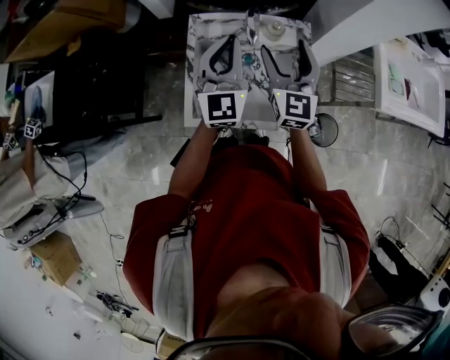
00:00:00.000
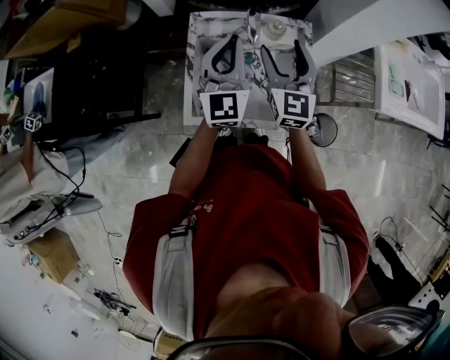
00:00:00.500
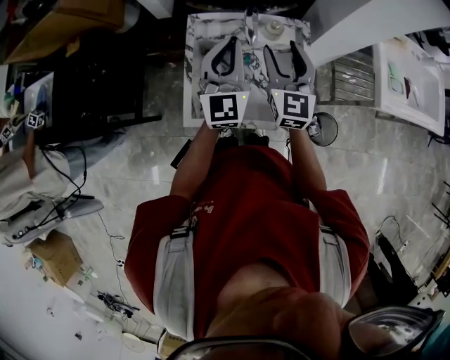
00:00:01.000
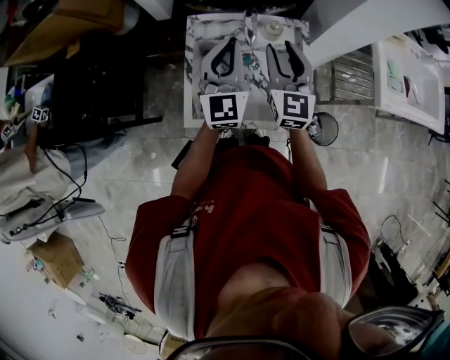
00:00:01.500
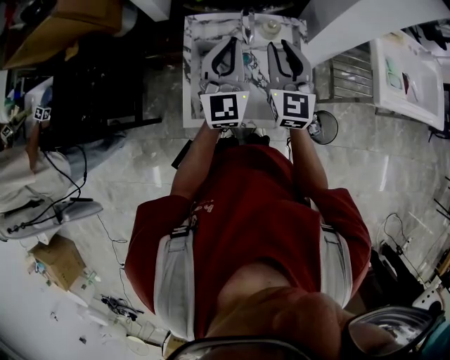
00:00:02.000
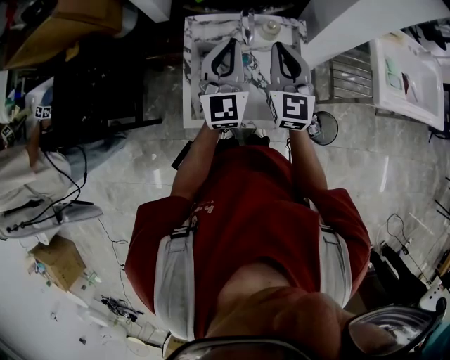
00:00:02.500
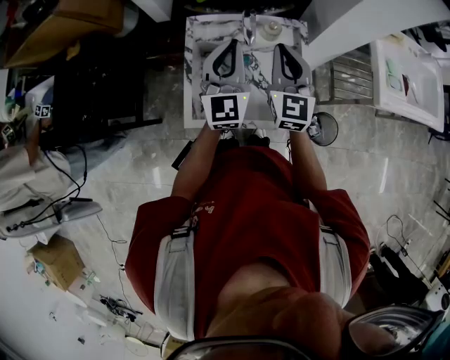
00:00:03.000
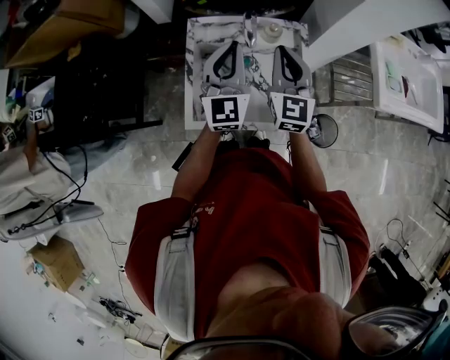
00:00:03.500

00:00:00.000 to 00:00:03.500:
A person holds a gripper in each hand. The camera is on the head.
00:00:00.000 to 00:00:02.000: The right gripper closes its fingers.
00:00:02.000 to 00:00:03.500: Both grippers stay about where they are.

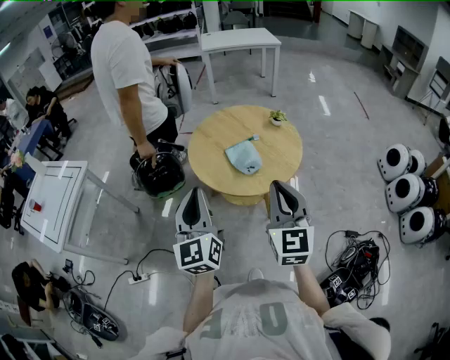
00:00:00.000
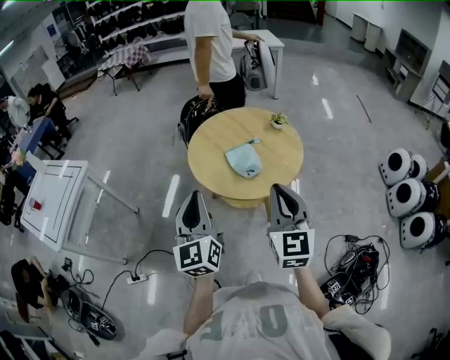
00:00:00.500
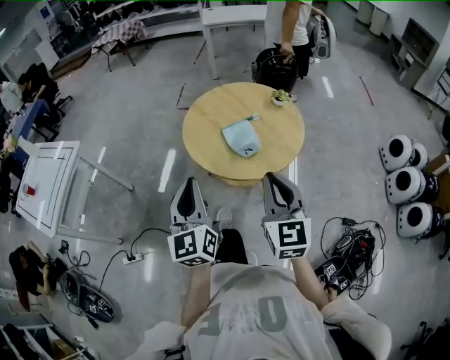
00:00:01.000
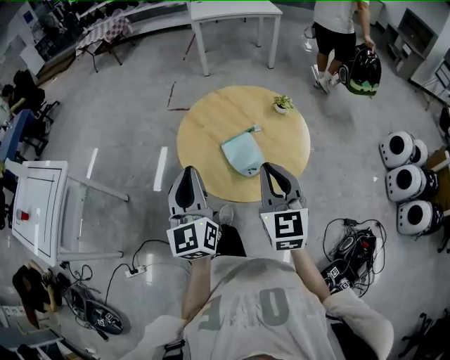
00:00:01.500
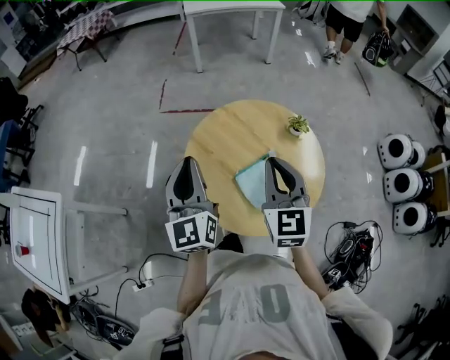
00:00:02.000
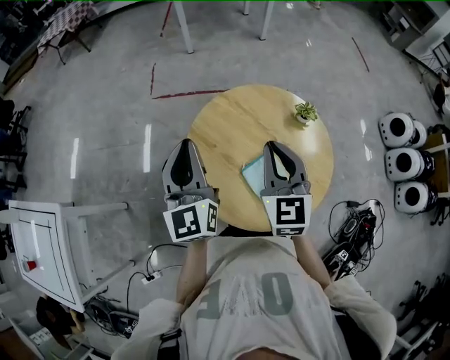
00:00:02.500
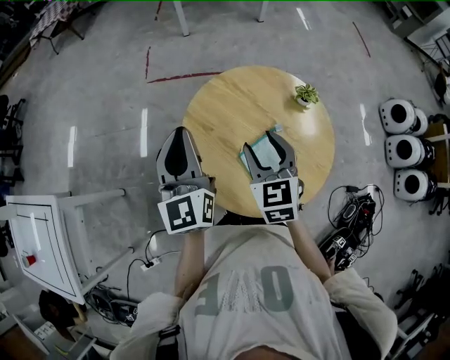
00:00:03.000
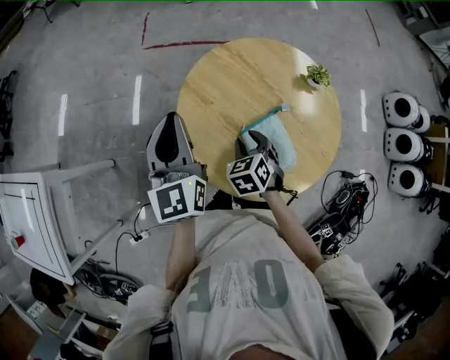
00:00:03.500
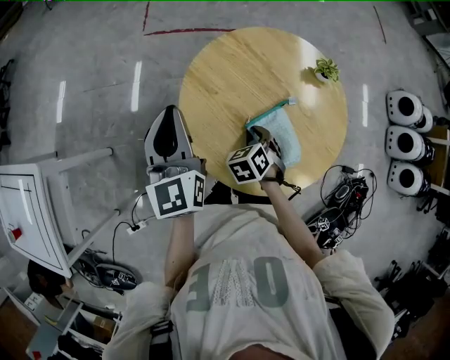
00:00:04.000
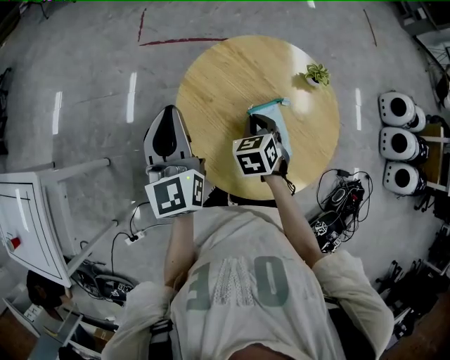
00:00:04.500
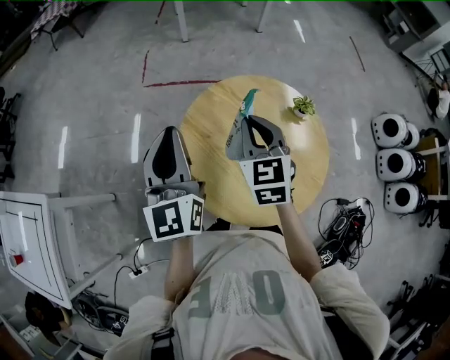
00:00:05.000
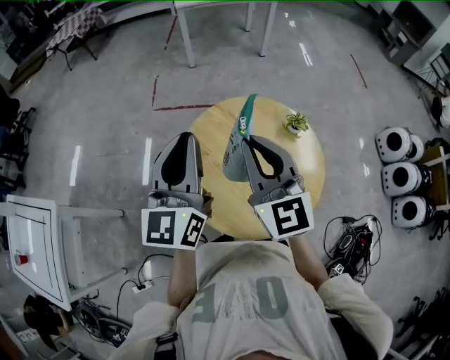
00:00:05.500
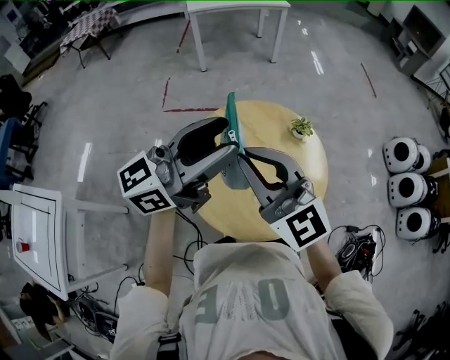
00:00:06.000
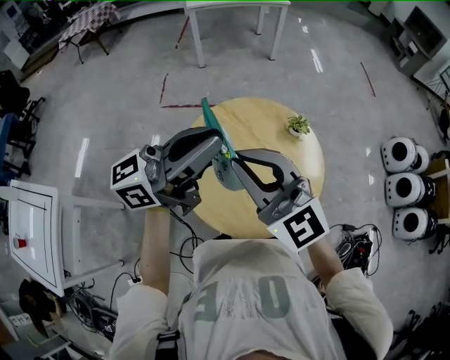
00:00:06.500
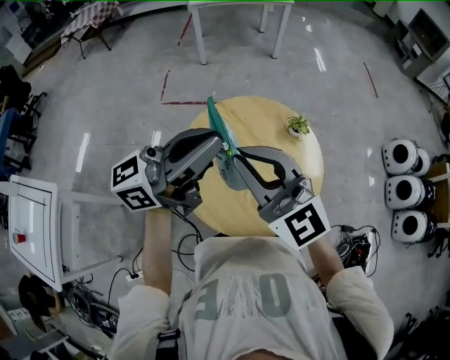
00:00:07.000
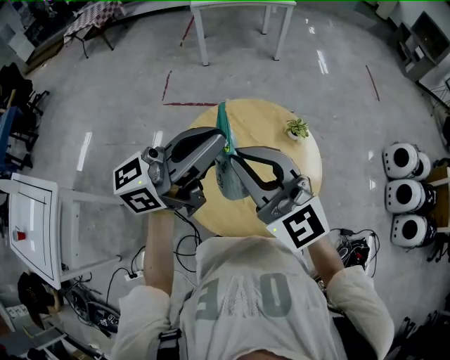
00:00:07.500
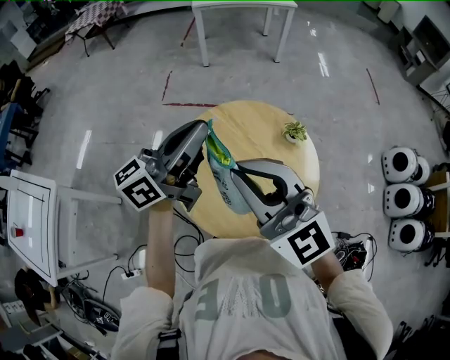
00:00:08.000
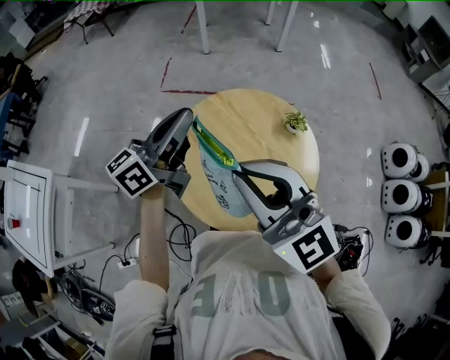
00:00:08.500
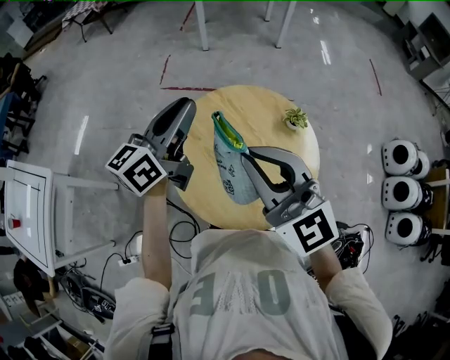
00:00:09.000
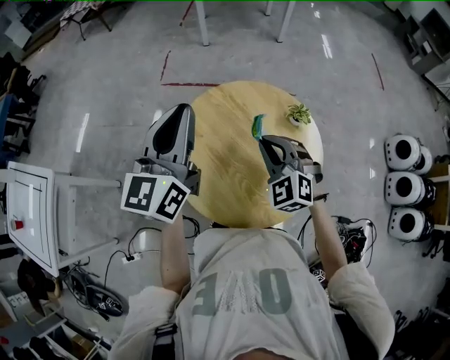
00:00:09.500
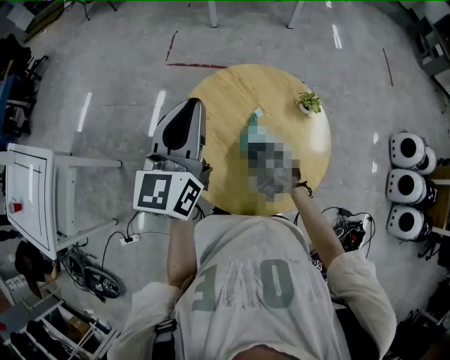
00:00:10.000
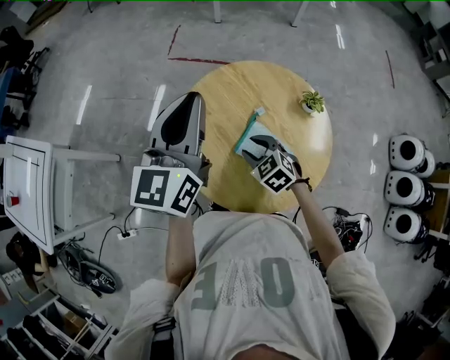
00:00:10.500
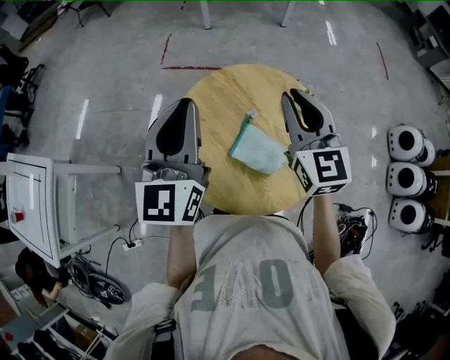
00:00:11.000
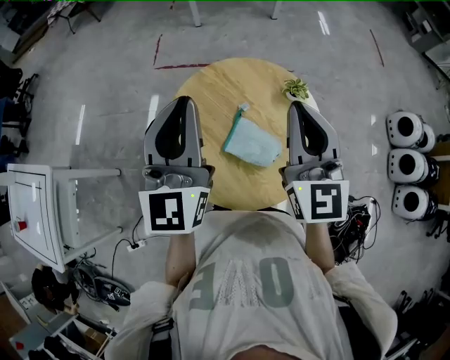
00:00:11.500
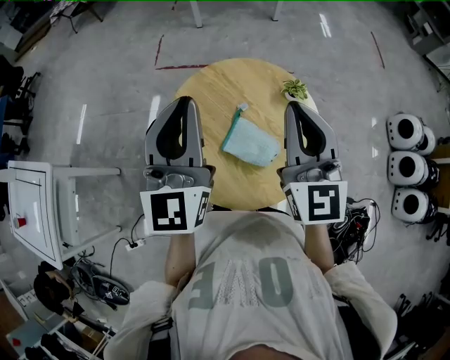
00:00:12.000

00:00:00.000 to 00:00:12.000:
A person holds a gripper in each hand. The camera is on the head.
00:00:00.000 to 00:00:02.000: The two grippers go about 35 cm forward.
00:00:02.000 to 00:00:04.000: The right gripper goes some 30 cm downward, tilts its fingers approximately 50 degrees downward, and opens, then closes once more. Meanwhile the left gripper shifts about 15 cm downward, forward and to the left.
00:00:04.000 to 00:00:06.000: The left gripper goes some 25 cm upward and to the right, turns by some 70 degrees, and opens, while the right gripper shifts about 40 cm upward, and angles its fingers upward, by about 70 degrees.
00:00:06.000 to 00:00:08.000: The left gripper moves roughly 5 cm, swivels approximately 20 degrees, and closes its fingers.
00:00:08.000 to 00:00:10.000: The left gripper shifts by some 5 cm, and rotates some 50 degrees. Meanwhile the right gripper moves downward, about 35 cm, and angles its fingers downward, by approximately 60 degrees.
00:00:10.000 to 00:00:12.000: The left gripper moves about 5 cm. The right gripper moves upward, about 30 cm, angles its fingers upward, by approximately 50 degrees, and opens, then closes again.

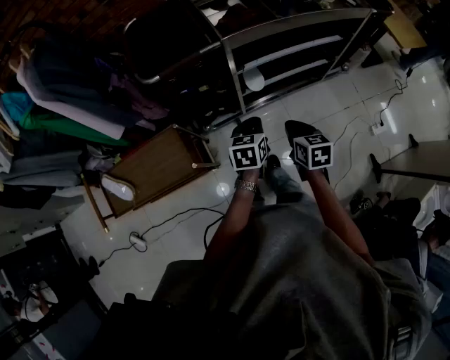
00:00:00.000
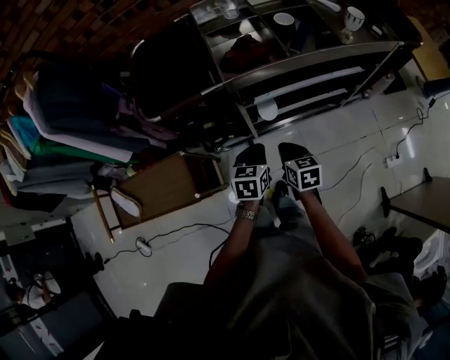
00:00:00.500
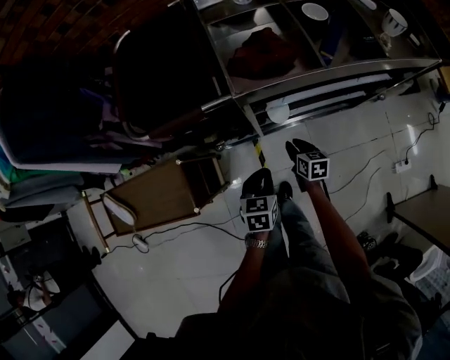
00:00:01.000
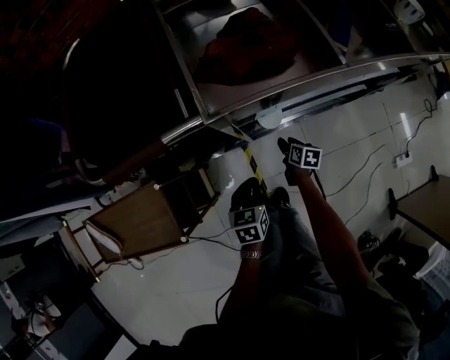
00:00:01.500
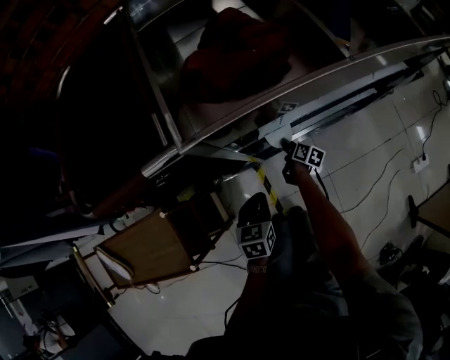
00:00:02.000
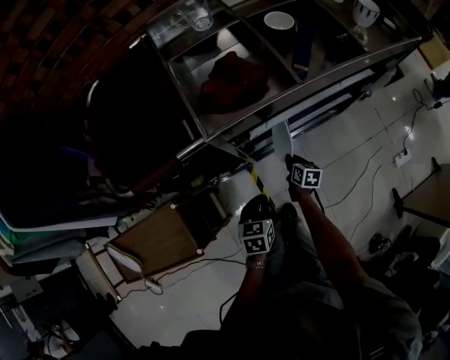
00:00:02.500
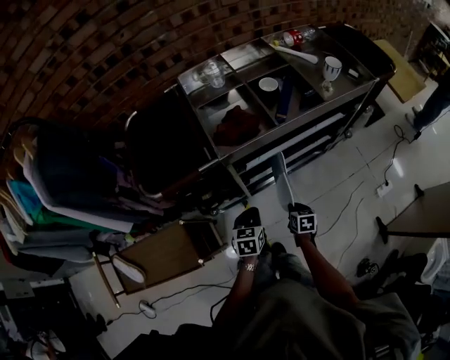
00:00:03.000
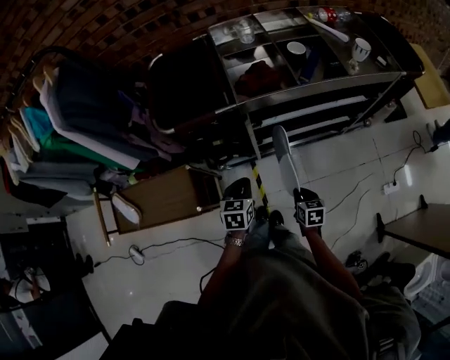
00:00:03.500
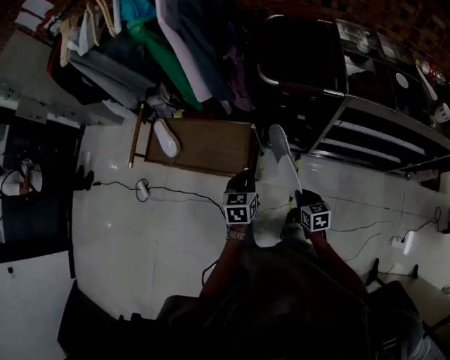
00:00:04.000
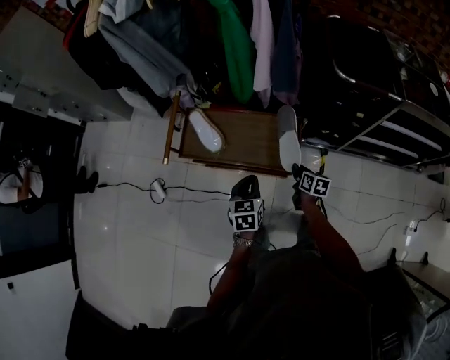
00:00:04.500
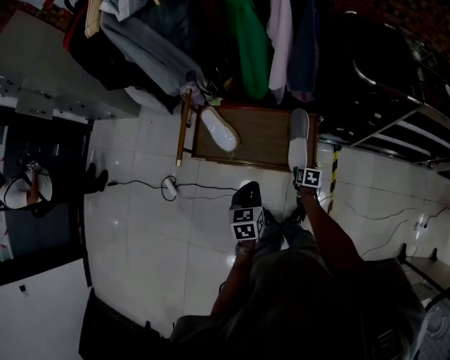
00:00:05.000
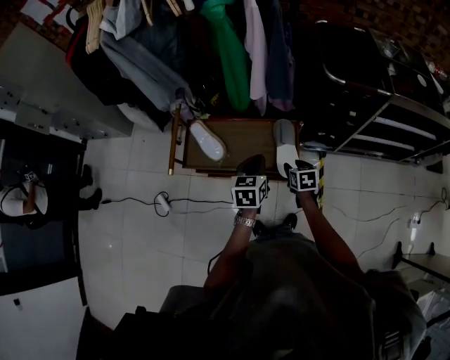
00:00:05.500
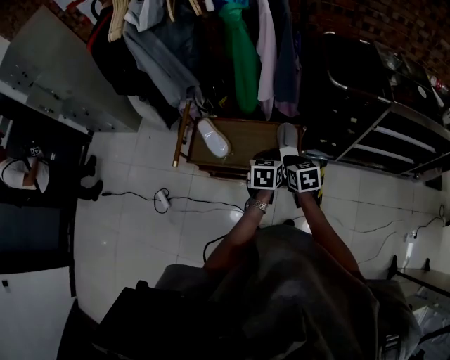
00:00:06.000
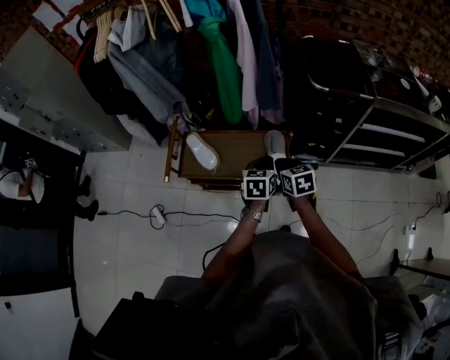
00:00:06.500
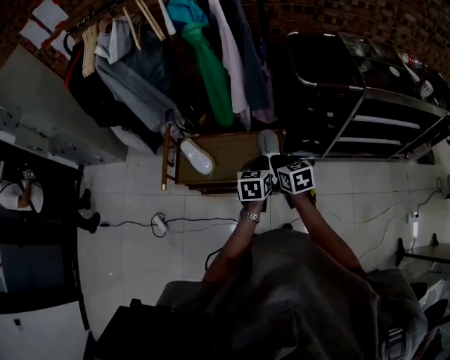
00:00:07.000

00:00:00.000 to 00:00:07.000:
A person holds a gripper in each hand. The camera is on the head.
00:00:00.000 to 00:00:02.000: The right gripper goes about 60 cm downward and forward, twists approximately 40 degrees clockwise, seen from behind, and opens up. The left gripper is displaced downward and forward by approximately 35 cm.
00:00:02.000 to 00:00:03.500: The left gripper goes about 25 cm upward, while the right gripper shifts approximately 50 cm upward and backward, and rolls counterclockwise, seen from behind, by about 40 degrees.
00:00:03.500 to 00:00:05.000: The pair of grippers is taken some 60 cm. The left gripper turns by about 30 degrees; the right gripper rotates roughly 20 degrees, and opens up.
00:00:05.000 to 00:00:07.000: The right gripper is displaced upward by roughly 30 cm, turns by roughly 30 degrees, and closes its fingers; the left gripper travels to the right and upward by about 20 cm.

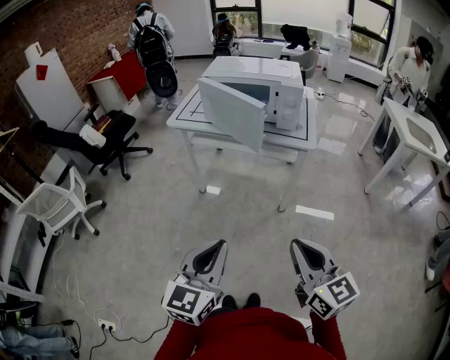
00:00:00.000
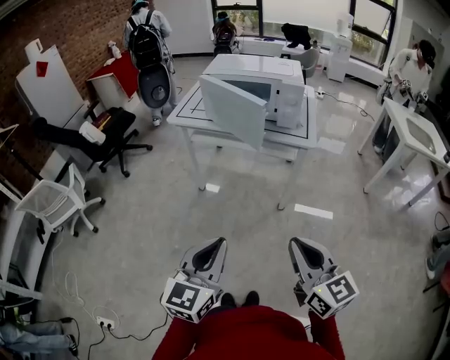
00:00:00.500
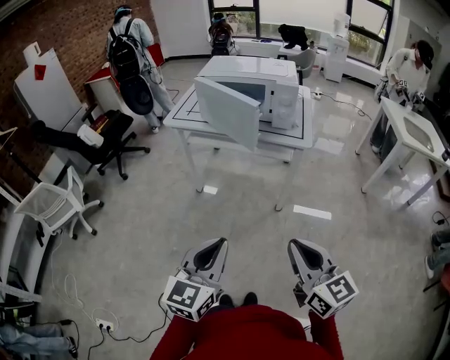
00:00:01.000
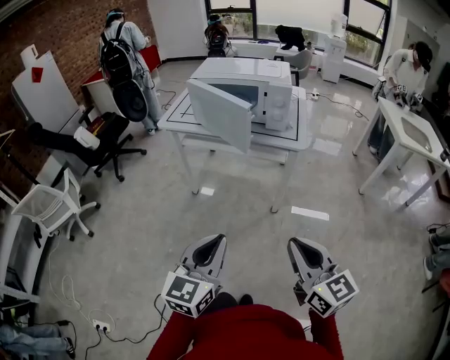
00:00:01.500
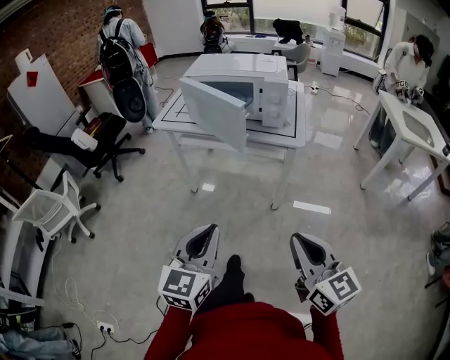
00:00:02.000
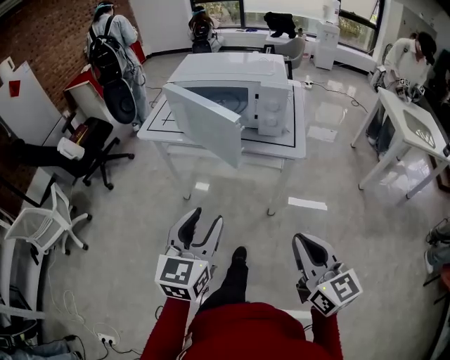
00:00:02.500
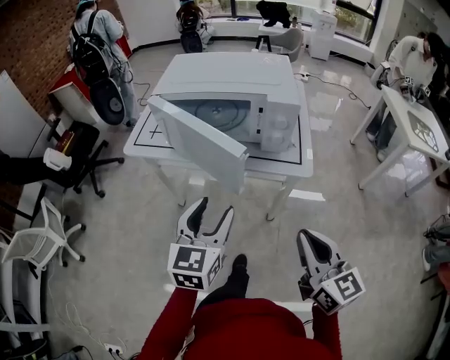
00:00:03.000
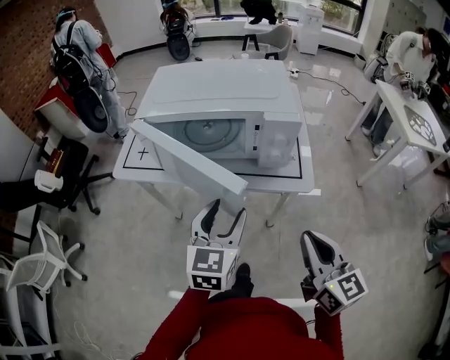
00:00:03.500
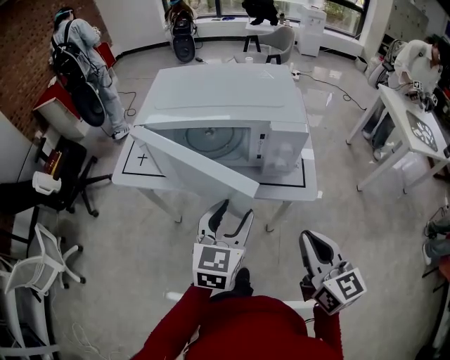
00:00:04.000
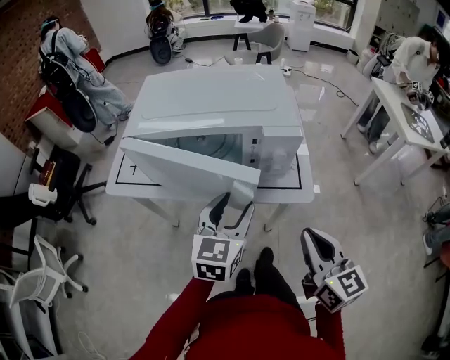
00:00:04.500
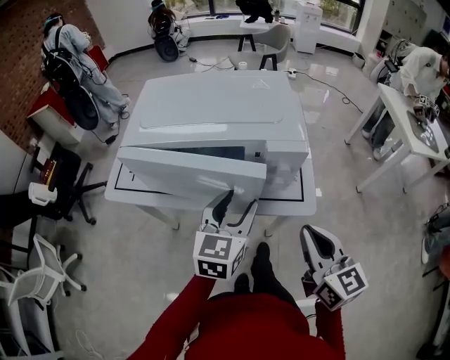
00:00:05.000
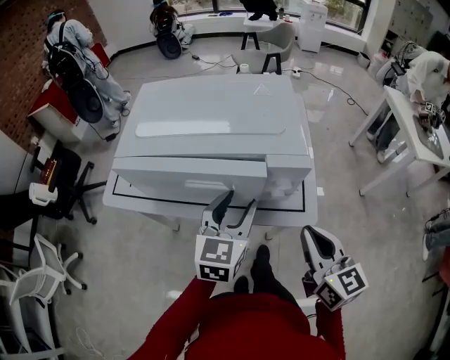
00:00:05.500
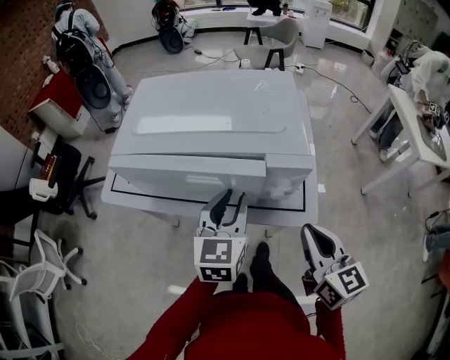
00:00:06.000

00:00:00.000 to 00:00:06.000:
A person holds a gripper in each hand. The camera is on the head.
00:00:00.000 to 00:00:02.000: The right gripper goes about 5 cm to the right. The left gripper moves forward, roughly 5 cm.
00:00:02.000 to 00:00:04.000: The two grippers go some 30 cm forward. The left gripper opens.
00:00:04.000 to 00:00:06.000: Both grippers travel together forward, roughly 10 cm. The left gripper closes up.
